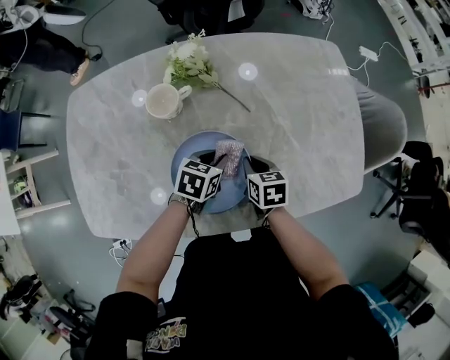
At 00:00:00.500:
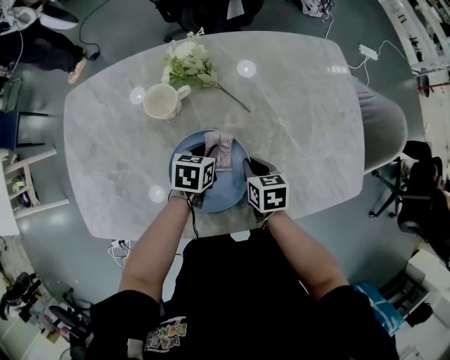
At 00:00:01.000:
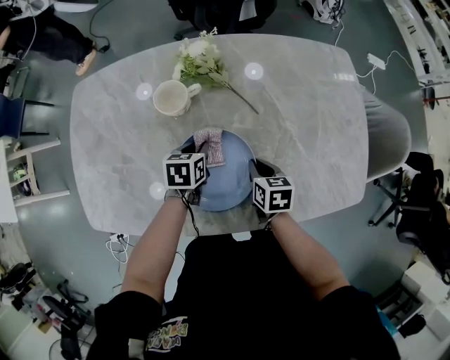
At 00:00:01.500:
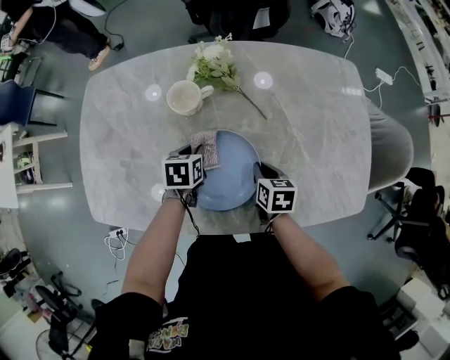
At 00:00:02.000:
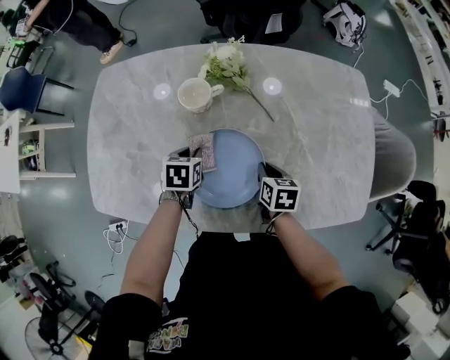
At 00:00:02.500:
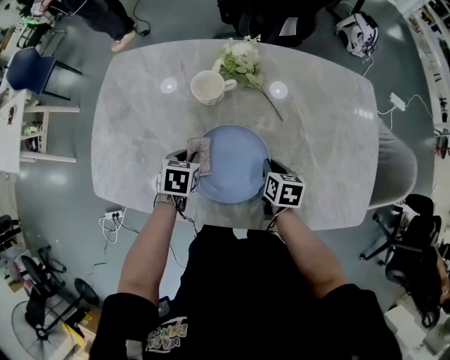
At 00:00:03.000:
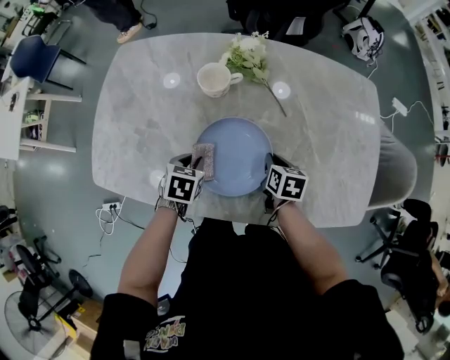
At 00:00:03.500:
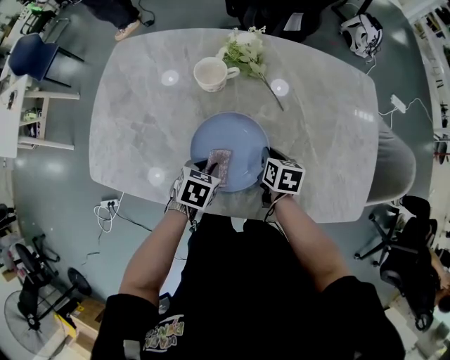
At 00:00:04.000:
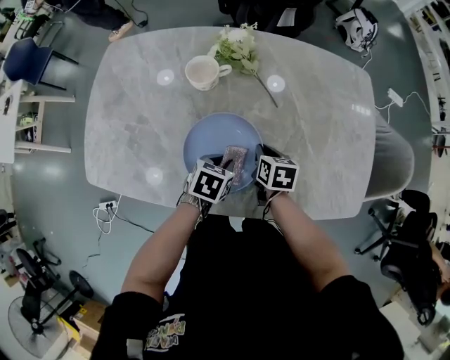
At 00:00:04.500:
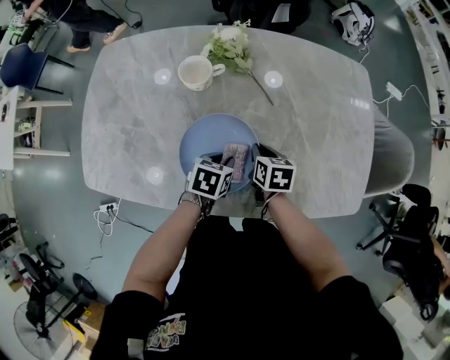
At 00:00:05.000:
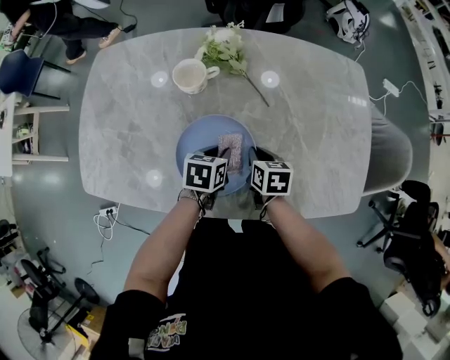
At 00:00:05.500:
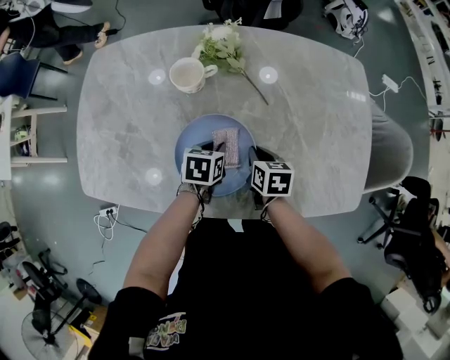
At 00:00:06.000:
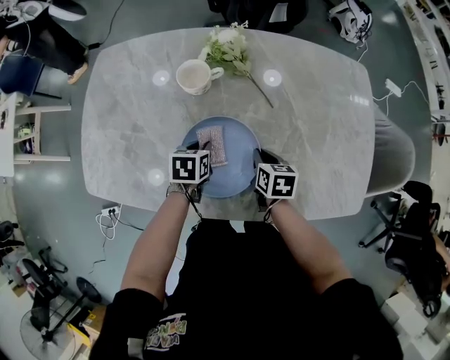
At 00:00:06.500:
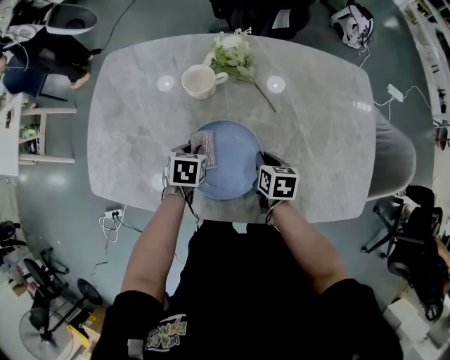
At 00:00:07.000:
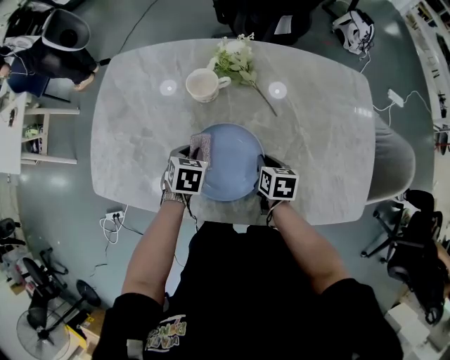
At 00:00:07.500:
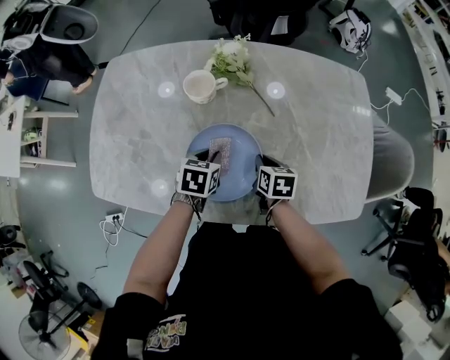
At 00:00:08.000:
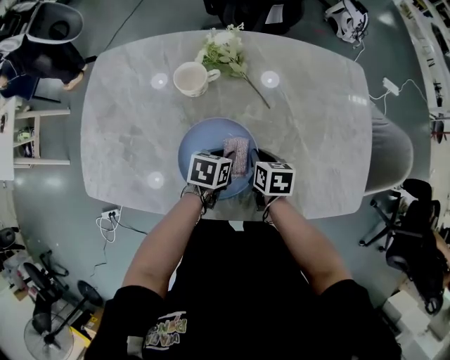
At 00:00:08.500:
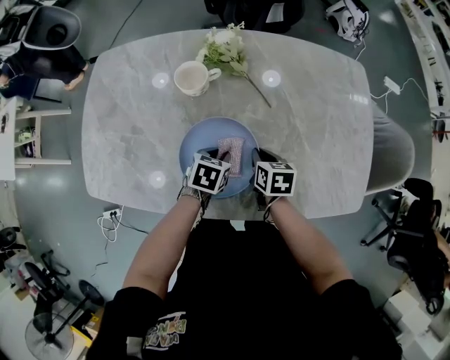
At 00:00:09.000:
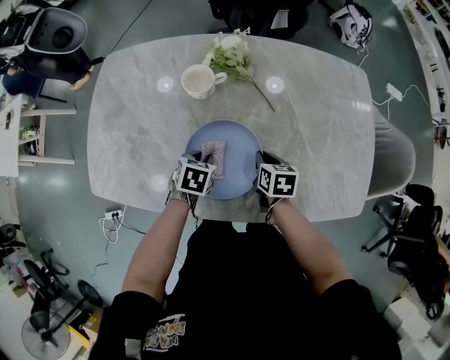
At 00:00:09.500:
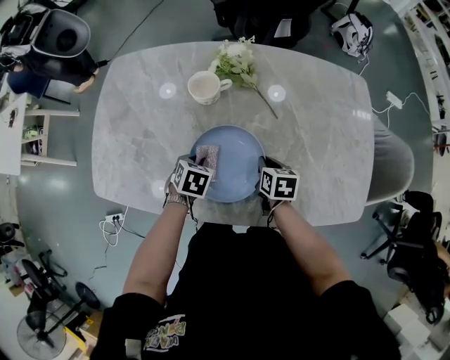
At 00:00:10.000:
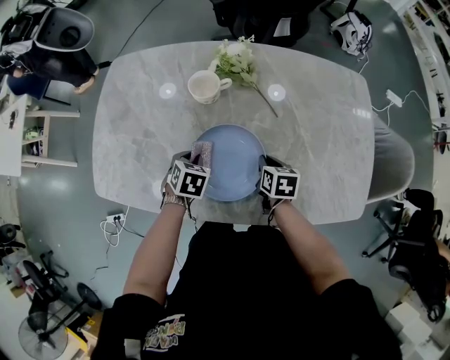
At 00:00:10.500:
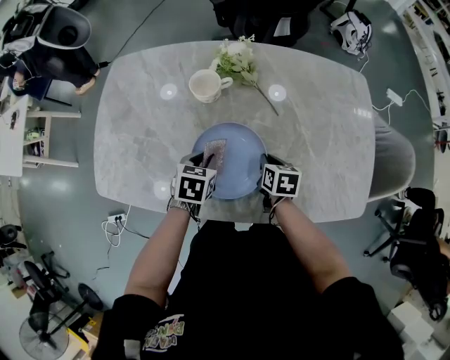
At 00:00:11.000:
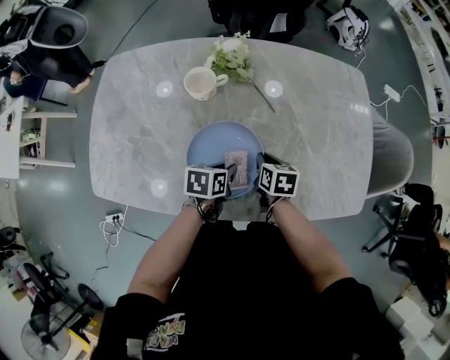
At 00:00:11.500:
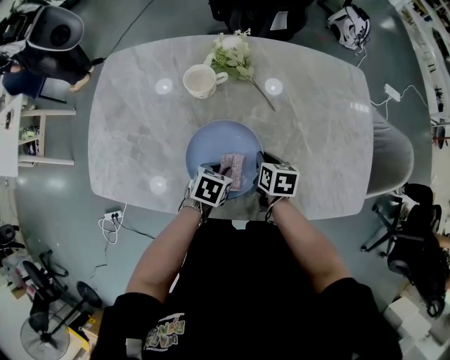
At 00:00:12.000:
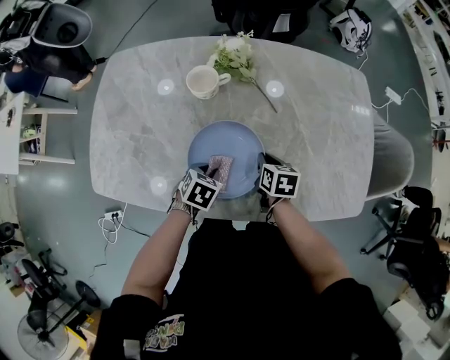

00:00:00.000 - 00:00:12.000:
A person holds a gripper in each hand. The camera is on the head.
00:00:00.000 - 00:00:02.000: The left gripper moves to the left, about 15 cm, and rotates roughly 30 degrees.
00:00:02.000 - 00:00:04.000: The left gripper is displaced to the right and backward by roughly 15 cm.
00:00:04.000 - 00:00:06.000: The left gripper shifts roughly 10 cm to the left and forward.
00:00:06.000 - 00:00:08.000: The left gripper goes about 10 cm to the right.
00:00:08.000 - 00:00:10.000: The left gripper goes roughly 15 cm to the left, and rotates roughly 30 degrees.
00:00:10.000 - 00:00:12.000: The left gripper goes roughly 10 cm to the right and backward.

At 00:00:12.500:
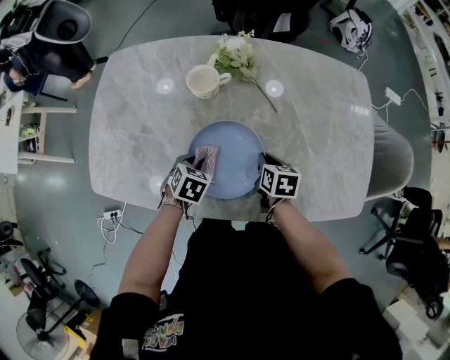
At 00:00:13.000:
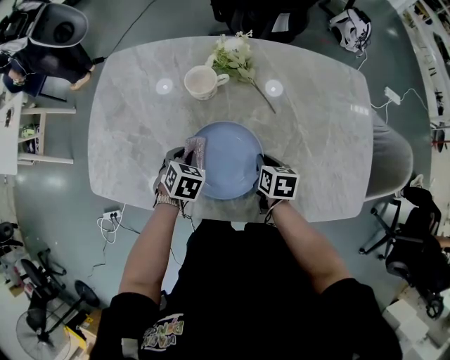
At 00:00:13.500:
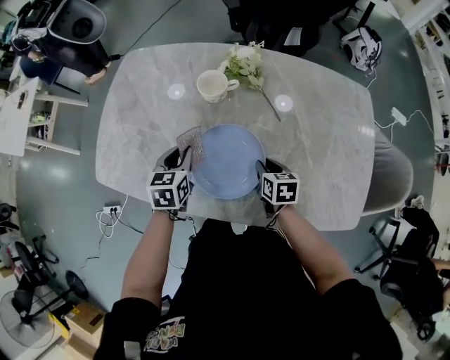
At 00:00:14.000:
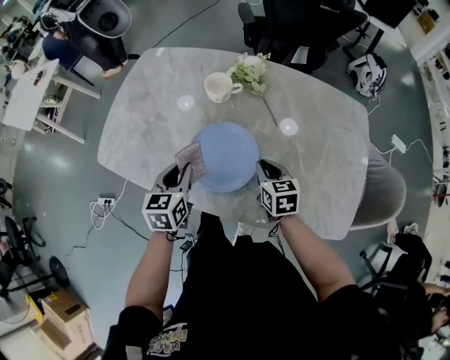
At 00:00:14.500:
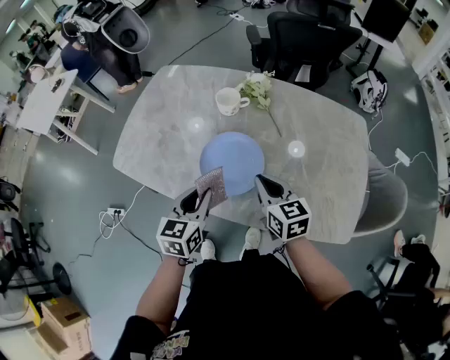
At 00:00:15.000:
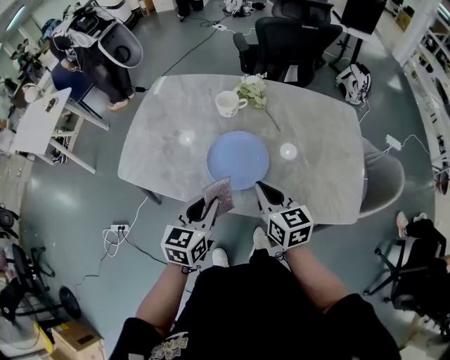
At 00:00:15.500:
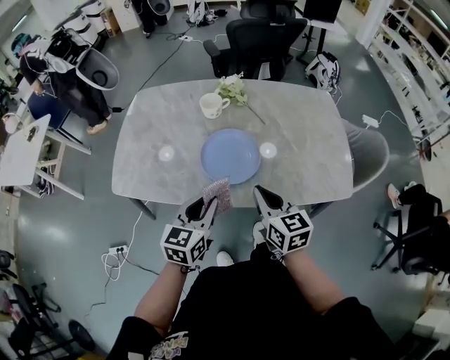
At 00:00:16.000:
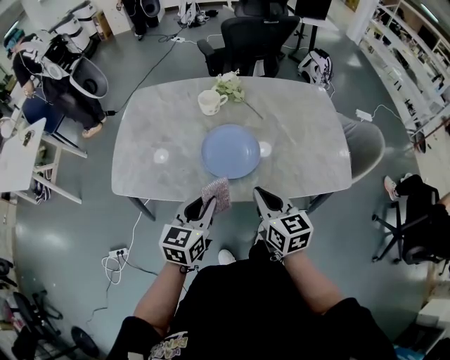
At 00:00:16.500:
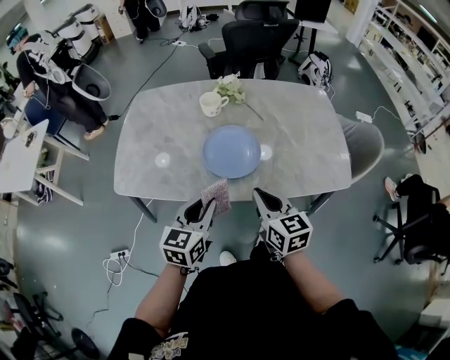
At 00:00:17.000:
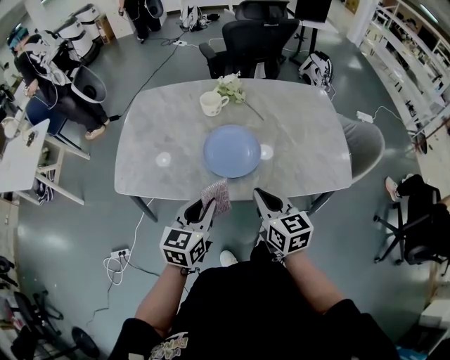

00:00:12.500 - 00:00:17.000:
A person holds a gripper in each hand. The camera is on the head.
00:00:12.500 - 00:00:14.500: Both grippers travel together upward and backward, approximately 25 cm. The right gripper swivels roughly 40 degrees. Meanwhile the left gripper tilts its fingers some 40 degrees upward.
00:00:14.500 - 00:00:17.000: The two grippers go approximately 15 cm backward and to the left. The left gripper swivels about 20 degrees.

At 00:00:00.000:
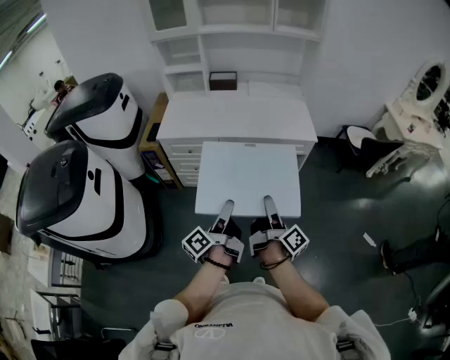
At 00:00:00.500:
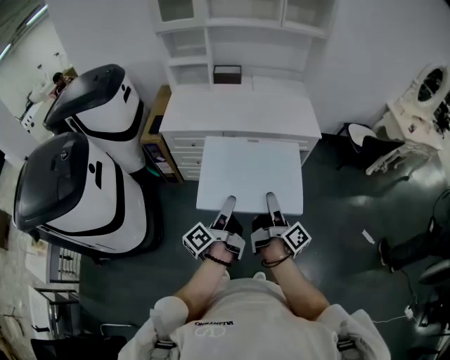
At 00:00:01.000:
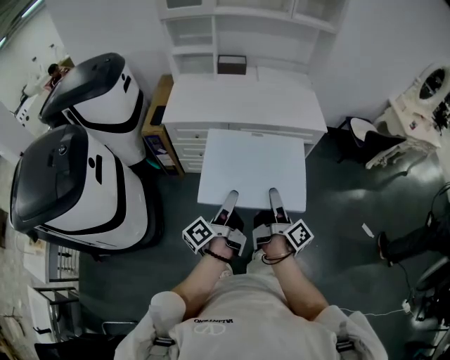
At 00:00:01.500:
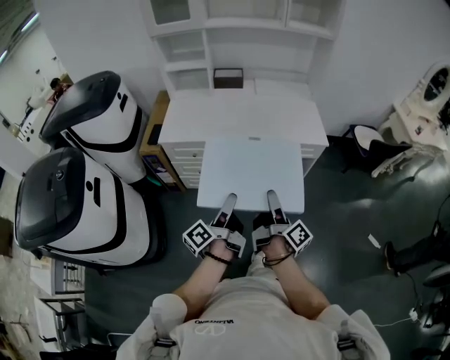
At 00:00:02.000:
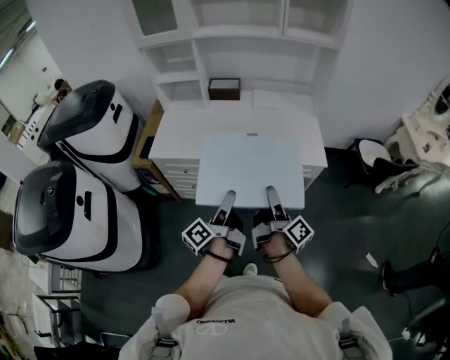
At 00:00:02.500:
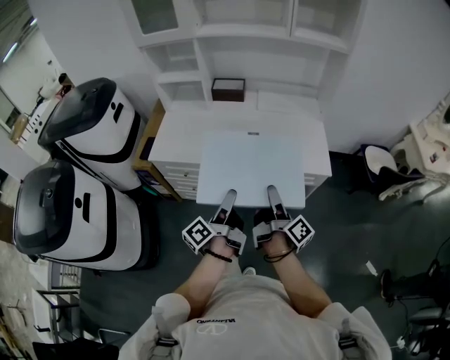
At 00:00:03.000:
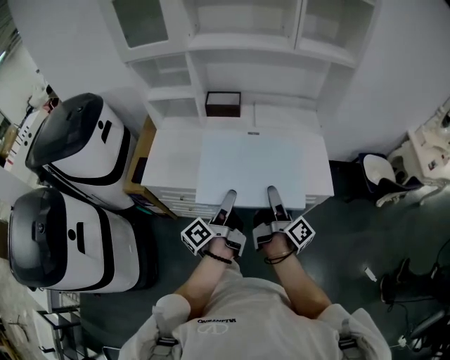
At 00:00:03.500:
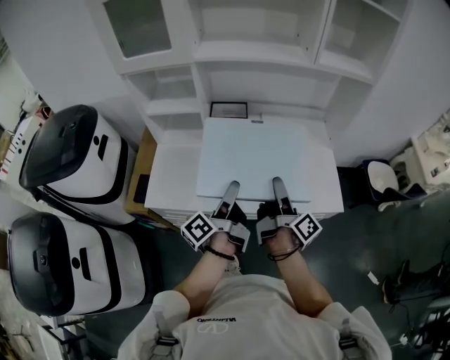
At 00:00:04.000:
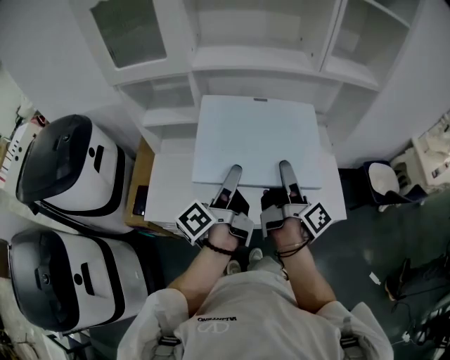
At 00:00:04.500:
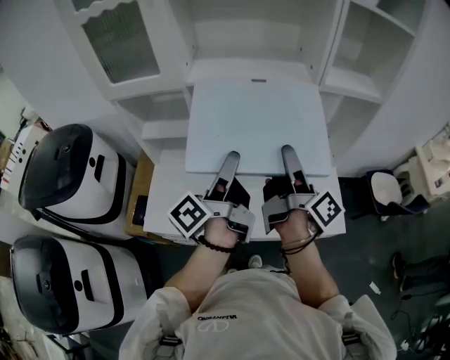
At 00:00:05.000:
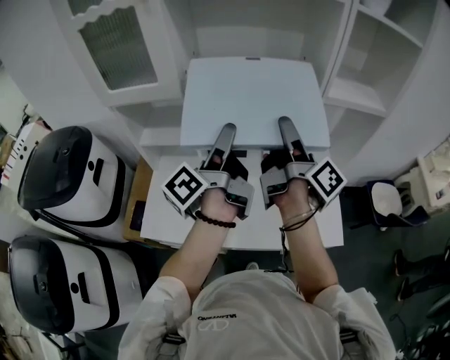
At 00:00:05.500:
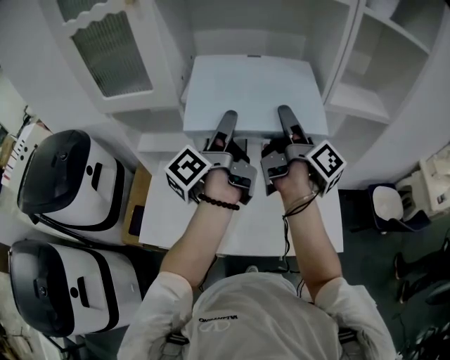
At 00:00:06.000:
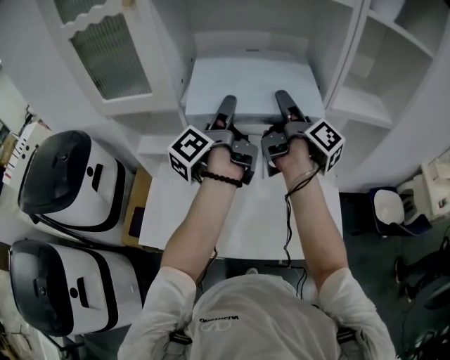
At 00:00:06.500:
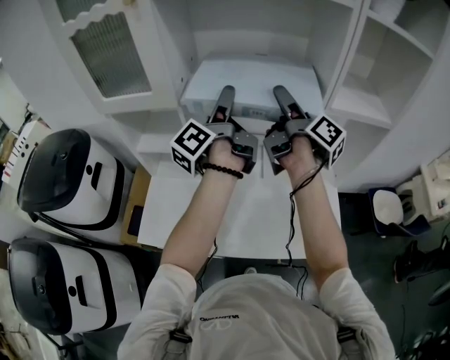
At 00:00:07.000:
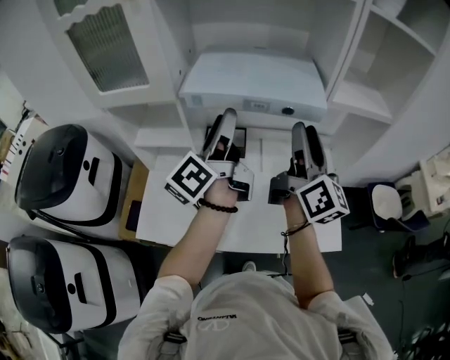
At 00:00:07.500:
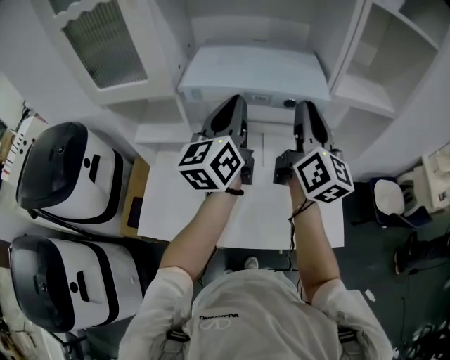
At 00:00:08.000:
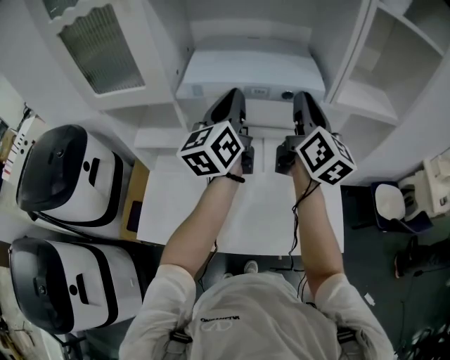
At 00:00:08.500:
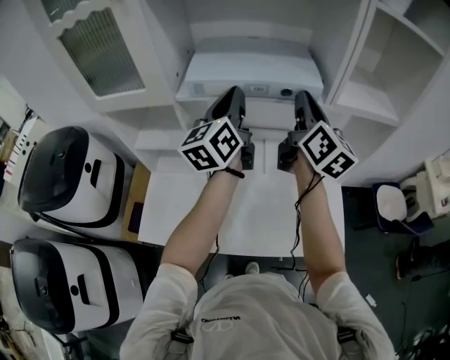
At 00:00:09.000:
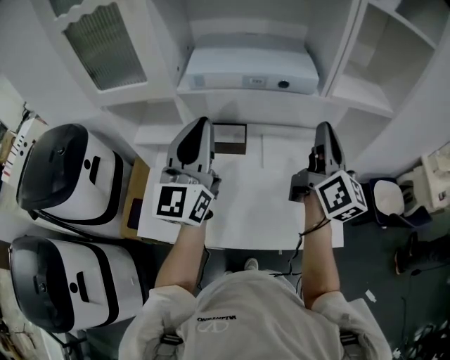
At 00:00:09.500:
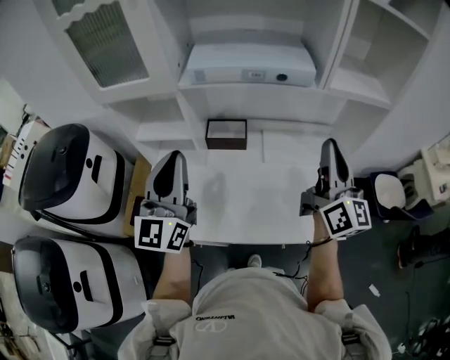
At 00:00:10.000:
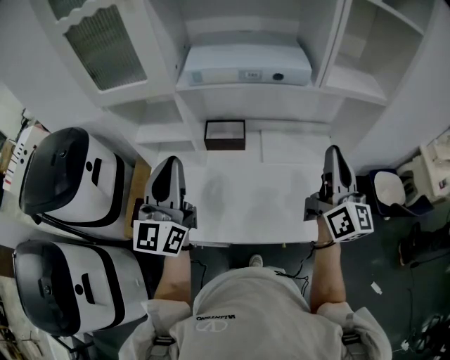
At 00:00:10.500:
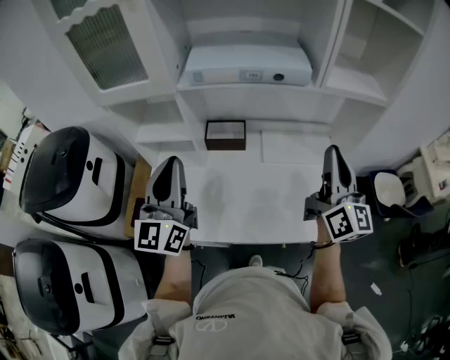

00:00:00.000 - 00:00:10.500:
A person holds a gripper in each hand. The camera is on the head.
00:00:00.000 - 00:00:02.000: Both grippers move forward, some 20 cm.
00:00:02.000 - 00:00:04.000: The two grippers go roughly 35 cm forward.
00:00:04.000 - 00:00:06.500: Both grippers travel together forward and upward, approximately 30 cm.
00:00:06.500 - 00:00:08.500: The right gripper moves to the right, some 5 cm, goes backward and returns, roughly 10 cm each way, twists about 50 degrees counterclockwise, seen from behind, and closes up, while the left gripper goes backward and returns, roughly 10 cm each way, twists roughly 50 degrees clockwise, seen from behind, and closes its fingers.
00:00:08.500 - 00:00:10.500: The right gripper moves backward, some 20 cm; the left gripper heads backward and to the left, covering some 25 cm, and swivels about 20 degrees.
